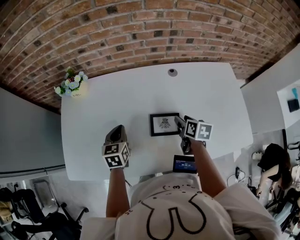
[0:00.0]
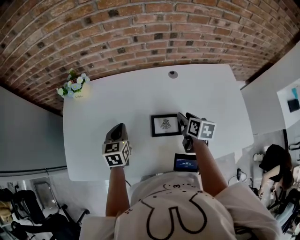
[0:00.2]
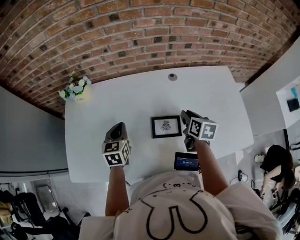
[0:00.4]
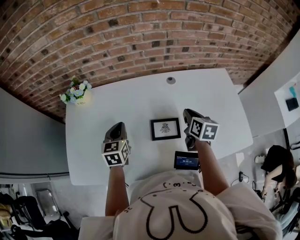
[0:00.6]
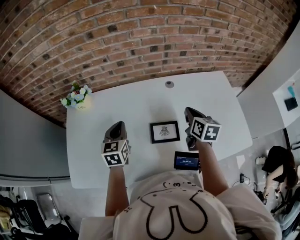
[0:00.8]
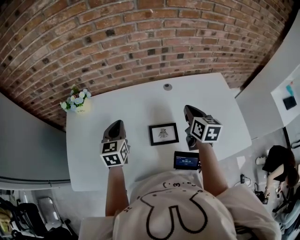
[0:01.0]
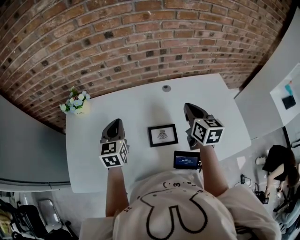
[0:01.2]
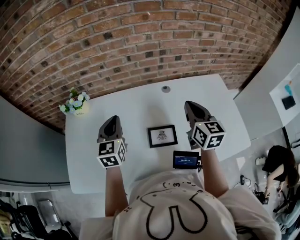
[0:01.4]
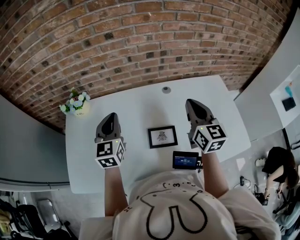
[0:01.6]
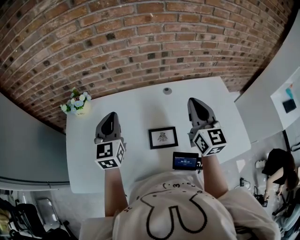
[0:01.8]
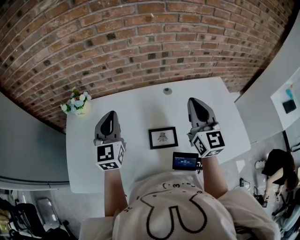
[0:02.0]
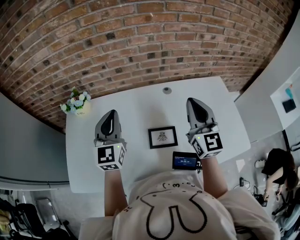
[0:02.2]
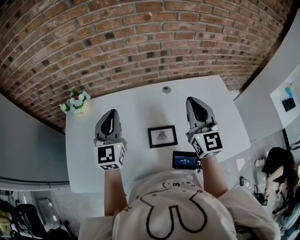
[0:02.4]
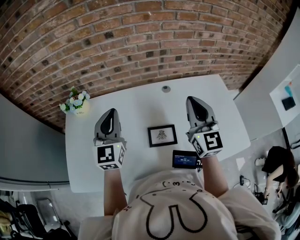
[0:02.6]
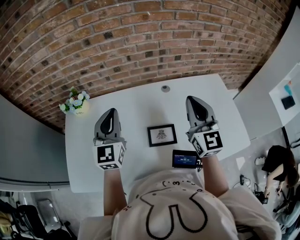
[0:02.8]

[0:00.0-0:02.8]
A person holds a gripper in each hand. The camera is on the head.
0:00.0 to 0:01.4: Both grippers travel together upward, about 20 cm. The left gripper rotates some 20 degrees, while the right gripper points its fingers approximately 30 degrees further upward, and closes its fingers.
0:01.4 to 0:02.8: Both grippers travel together upward, some 5 cm. The right gripper turns by some 30 degrees.

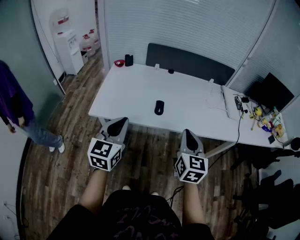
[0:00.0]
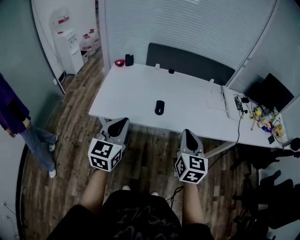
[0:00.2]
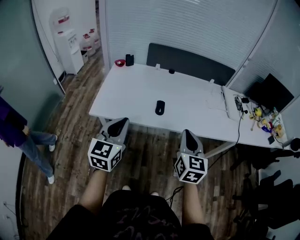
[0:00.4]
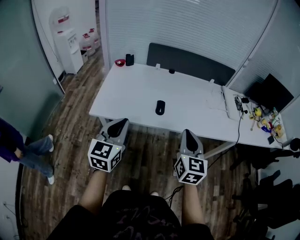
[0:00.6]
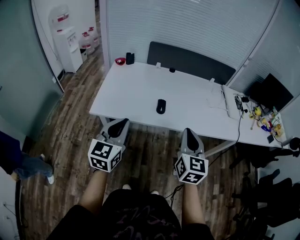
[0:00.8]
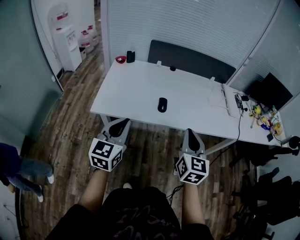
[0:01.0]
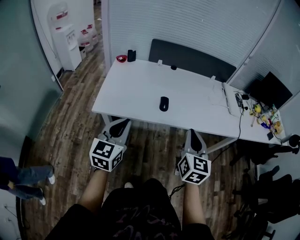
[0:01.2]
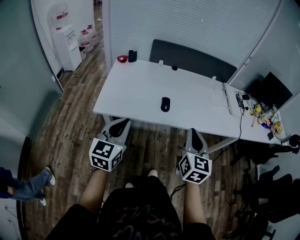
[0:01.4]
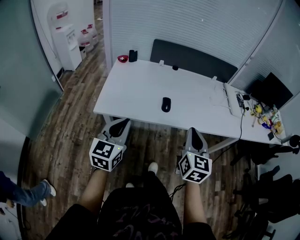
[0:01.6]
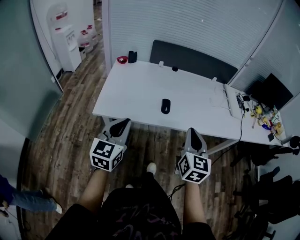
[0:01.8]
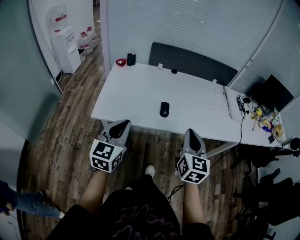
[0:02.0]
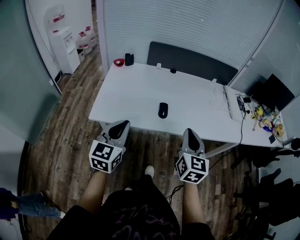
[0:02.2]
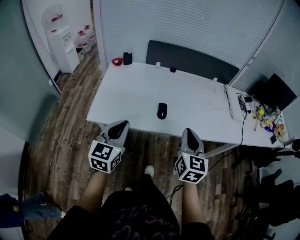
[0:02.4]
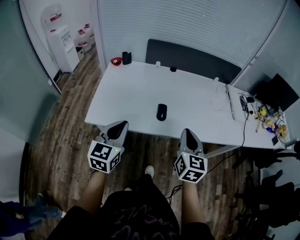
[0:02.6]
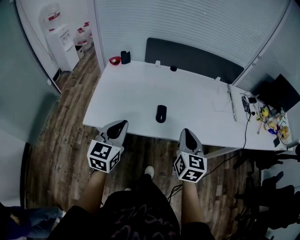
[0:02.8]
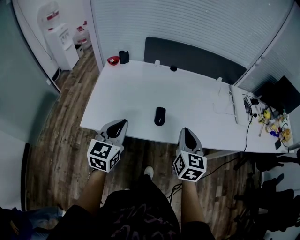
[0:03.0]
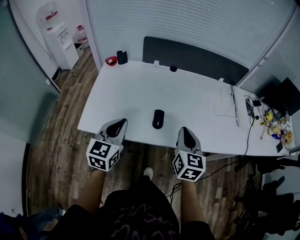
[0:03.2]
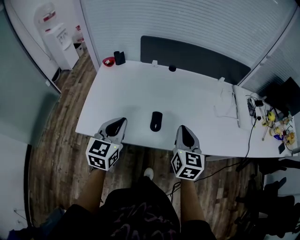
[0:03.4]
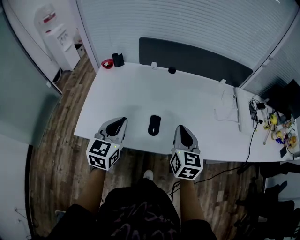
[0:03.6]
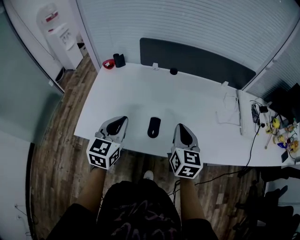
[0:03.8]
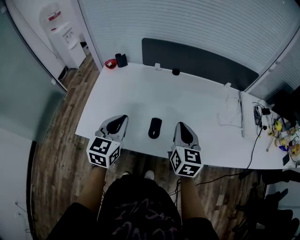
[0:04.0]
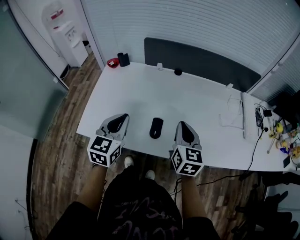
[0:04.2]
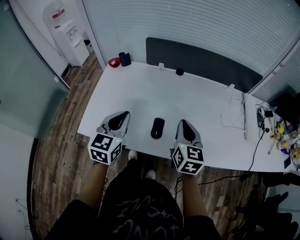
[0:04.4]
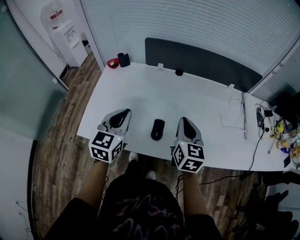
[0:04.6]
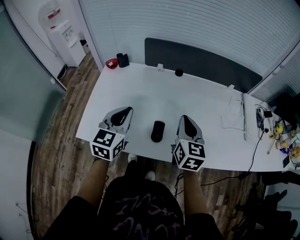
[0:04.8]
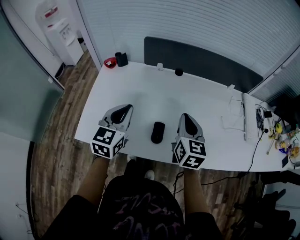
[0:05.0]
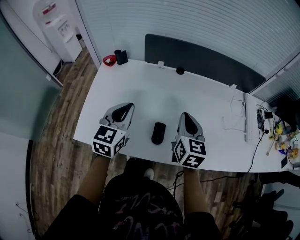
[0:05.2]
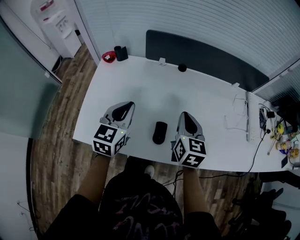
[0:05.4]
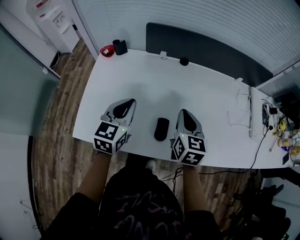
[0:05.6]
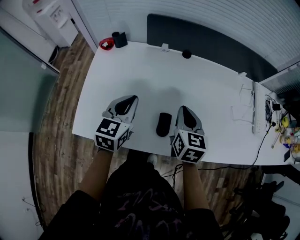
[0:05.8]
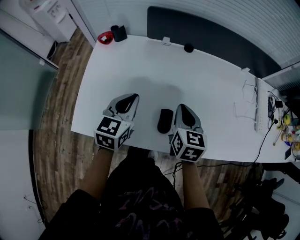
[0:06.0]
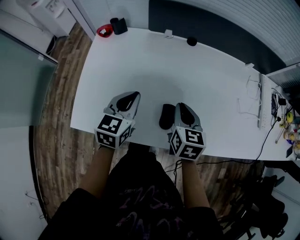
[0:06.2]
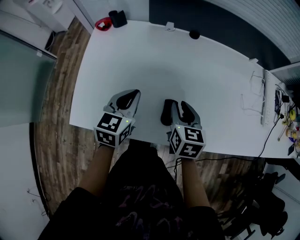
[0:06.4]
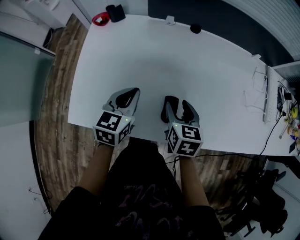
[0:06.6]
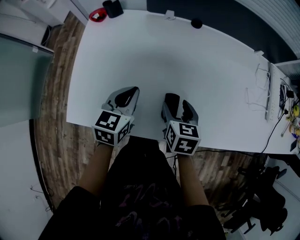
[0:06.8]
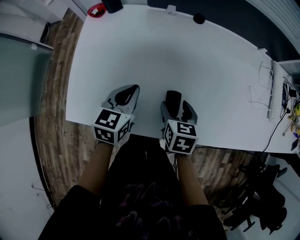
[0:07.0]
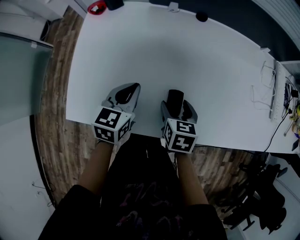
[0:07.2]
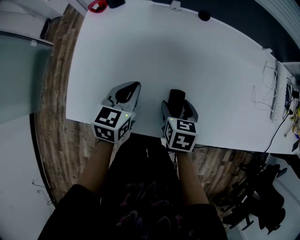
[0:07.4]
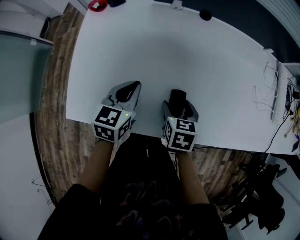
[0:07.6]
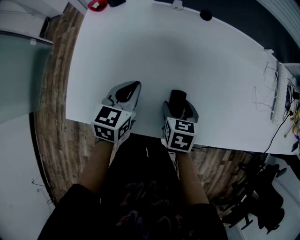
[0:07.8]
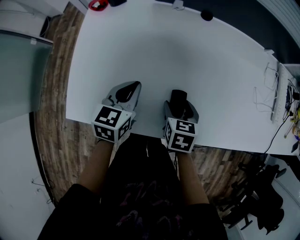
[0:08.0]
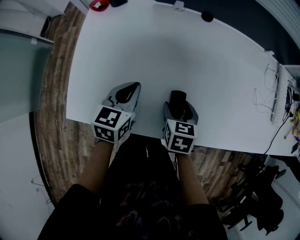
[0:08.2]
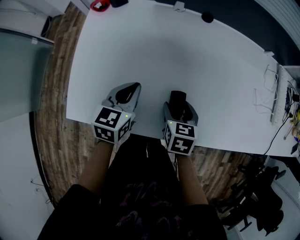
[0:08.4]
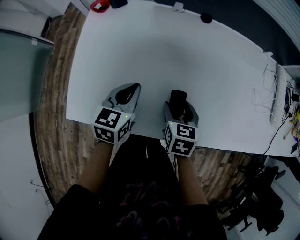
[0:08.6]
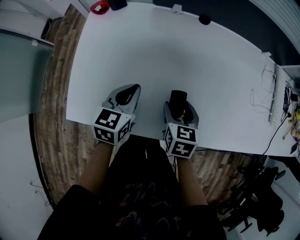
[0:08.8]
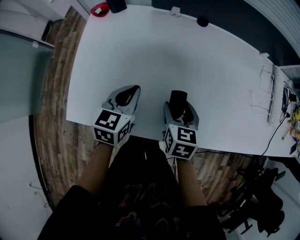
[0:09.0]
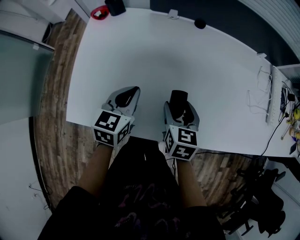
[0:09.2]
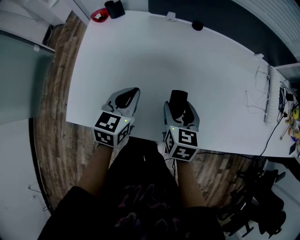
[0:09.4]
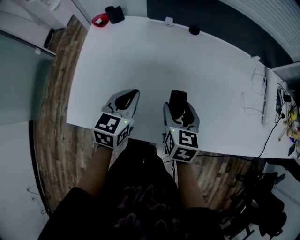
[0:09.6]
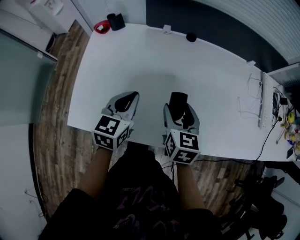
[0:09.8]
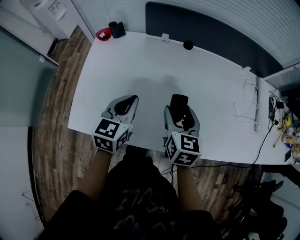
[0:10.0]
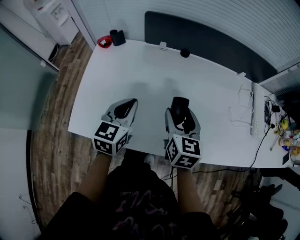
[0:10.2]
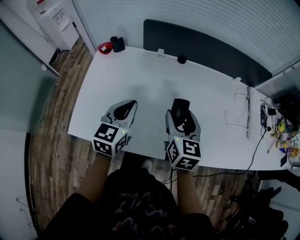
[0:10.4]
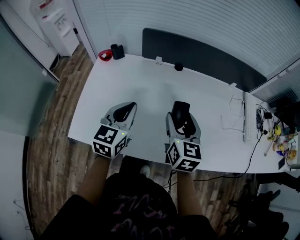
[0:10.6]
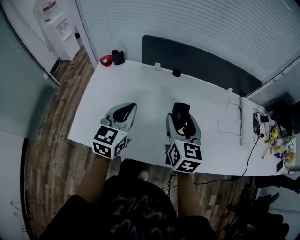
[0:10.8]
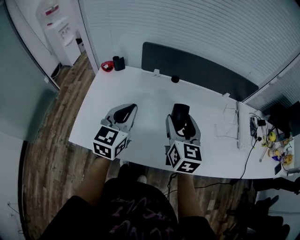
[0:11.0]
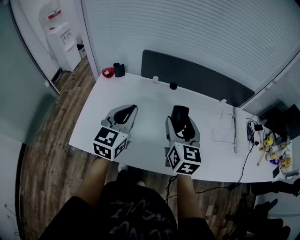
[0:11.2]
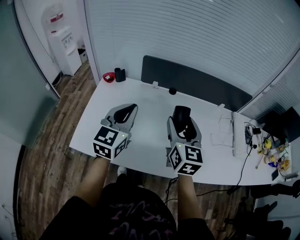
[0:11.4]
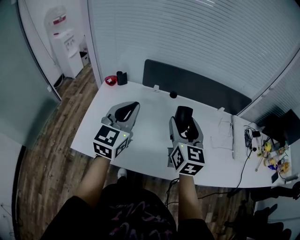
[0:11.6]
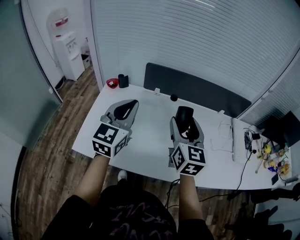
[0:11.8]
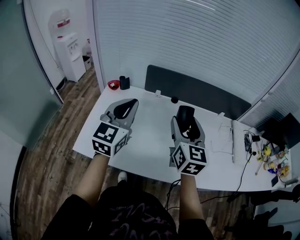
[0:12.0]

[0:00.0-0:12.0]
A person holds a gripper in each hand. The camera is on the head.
0:00.0 to 0:01.6: The left gripper changes place by roughly 5 cm.
0:01.6 to 0:03.0: Both grippers travel together forward, some 15 cm.
0:03.0 to 0:04.4: The two grippers go about 15 cm forward.
0:04.4 to 0:06.0: The right gripper travels downward, forward and to the left by roughly 10 cm. The left gripper heads forward and downward, covering about 10 cm.
0:06.0 to 0:07.6: The grippers both shift downward by roughly 10 cm. The right gripper swivels roughly 20 degrees, and opens its fingers.
0:07.6 to 0:09.0: The grippers make only small movements.
0:09.0 to 0:10.4: Both grippers move upward, about 15 cm. The right gripper swivels approximately 20 degrees.
0:10.4 to 0:12.0: Both grippers travel together upward, approximately 15 cm. The left gripper turns by some 20 degrees.

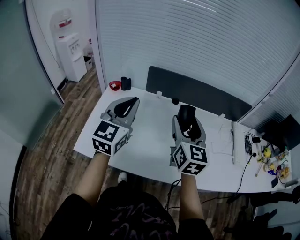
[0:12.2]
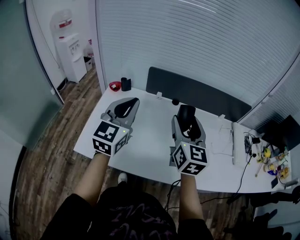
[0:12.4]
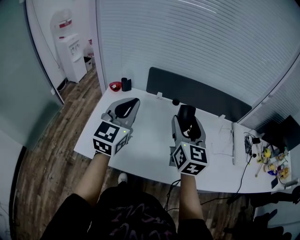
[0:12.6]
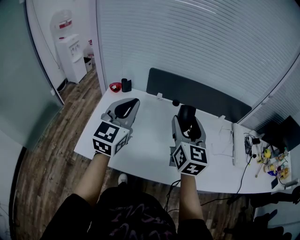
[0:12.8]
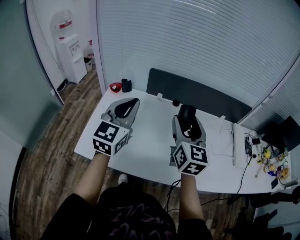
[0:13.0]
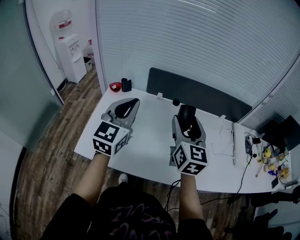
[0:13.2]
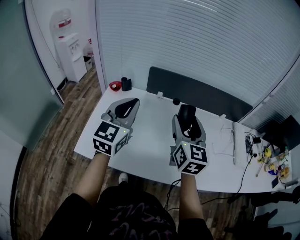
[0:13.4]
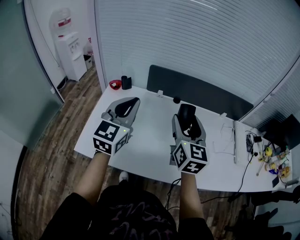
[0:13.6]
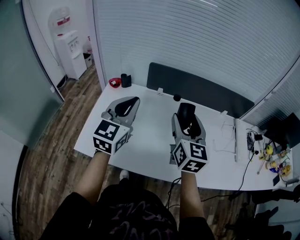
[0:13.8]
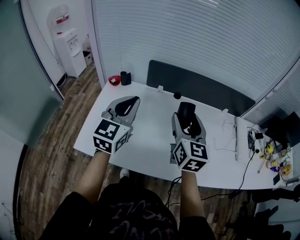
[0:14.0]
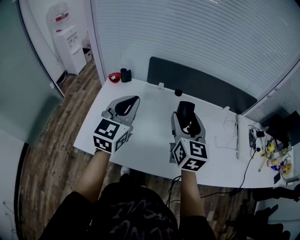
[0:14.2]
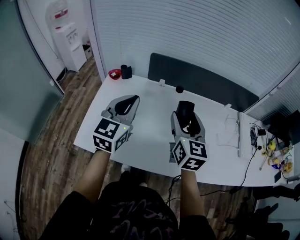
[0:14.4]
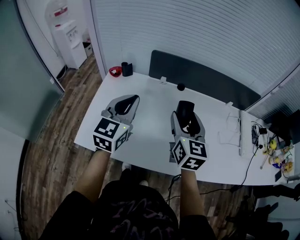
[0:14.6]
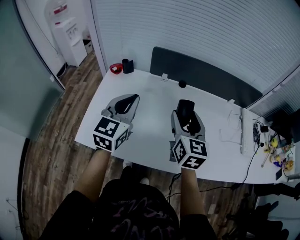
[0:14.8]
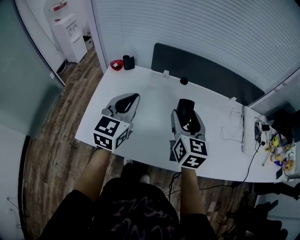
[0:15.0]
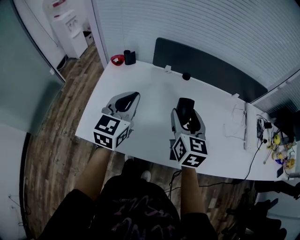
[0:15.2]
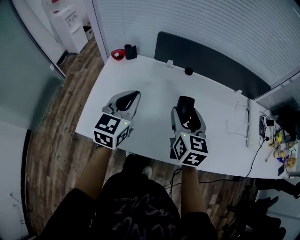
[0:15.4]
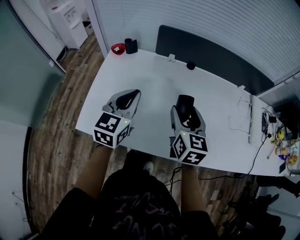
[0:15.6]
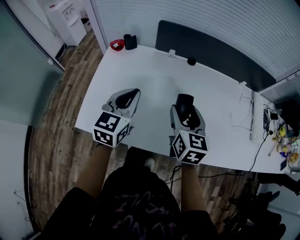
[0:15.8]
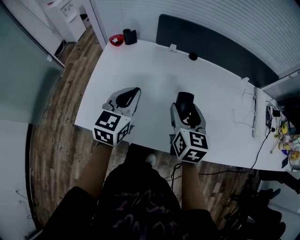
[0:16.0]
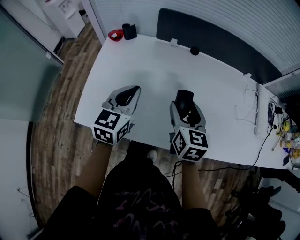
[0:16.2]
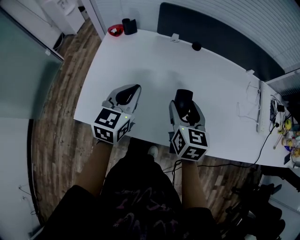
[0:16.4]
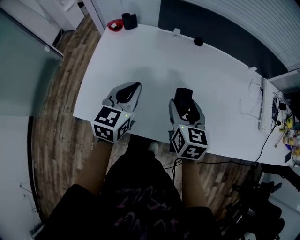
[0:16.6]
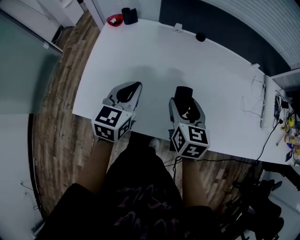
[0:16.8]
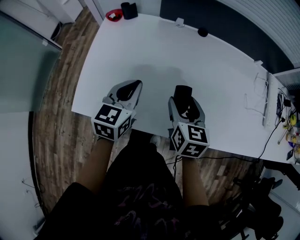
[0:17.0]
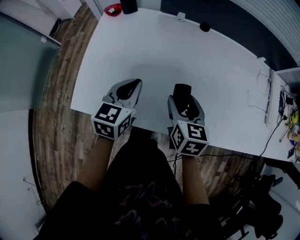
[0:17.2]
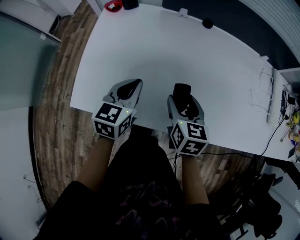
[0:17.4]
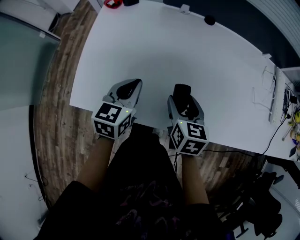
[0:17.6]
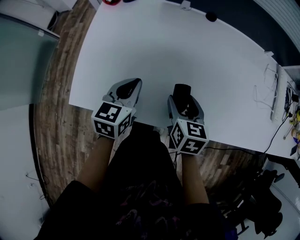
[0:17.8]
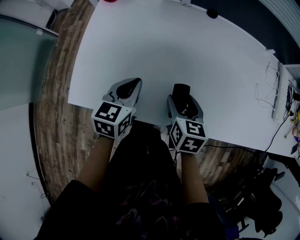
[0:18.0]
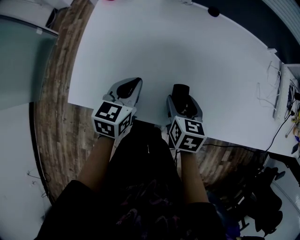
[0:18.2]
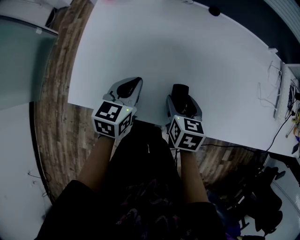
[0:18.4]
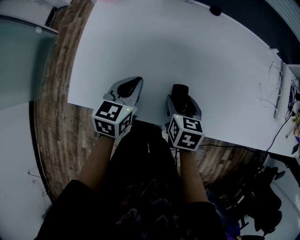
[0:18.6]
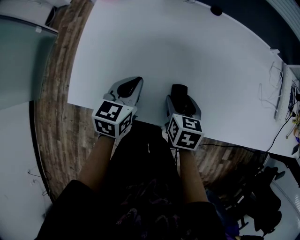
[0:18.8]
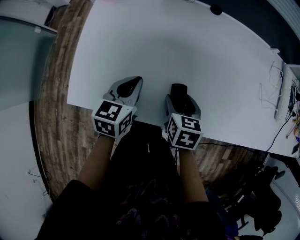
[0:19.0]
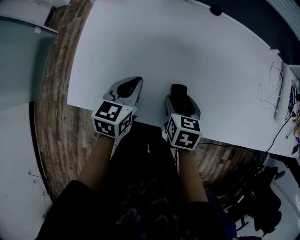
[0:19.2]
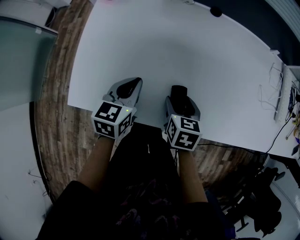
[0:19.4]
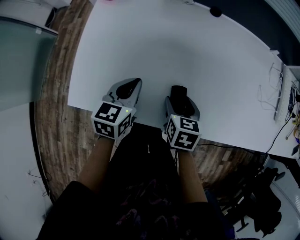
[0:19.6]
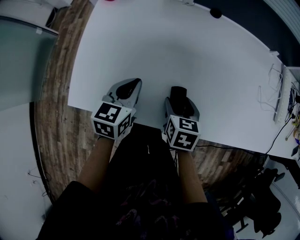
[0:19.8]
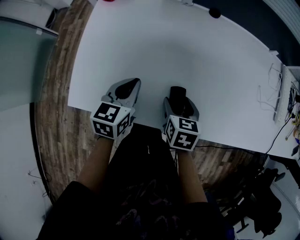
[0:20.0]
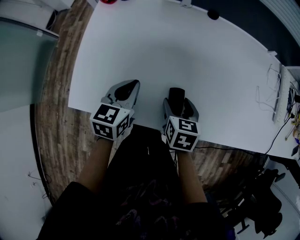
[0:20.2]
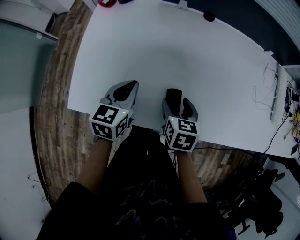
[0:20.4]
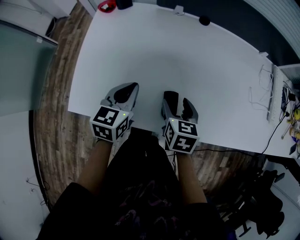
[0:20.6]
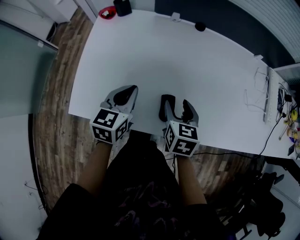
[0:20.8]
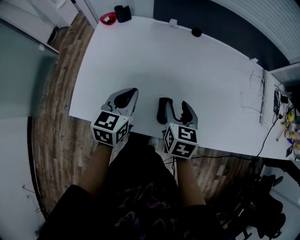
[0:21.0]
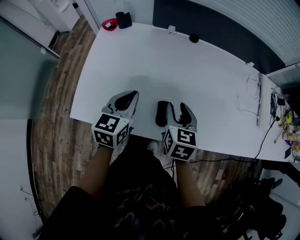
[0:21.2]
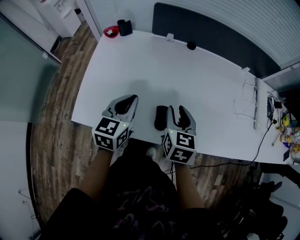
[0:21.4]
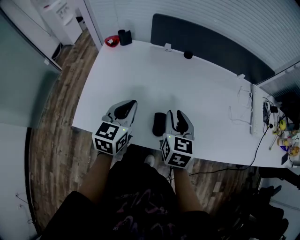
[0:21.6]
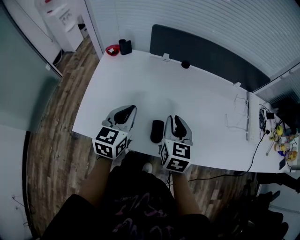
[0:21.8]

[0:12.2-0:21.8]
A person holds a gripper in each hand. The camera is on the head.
0:12.2 to 0:13.8: There are only small adjustments of the grippers.
0:13.8 to 0:15.4: The two grippers go approximately 10 cm downward.
0:15.4 to 0:17.0: Both grippers travel together downward, some 10 cm.
0:17.0 to 0:18.6: The two grippers go some 10 cm downward.
0:18.6 to 0:20.2: Both grippers stay put.
0:20.2 to 0:21.8: The grippers both shift upward by about 15 cm. The right gripper changes its angle by roughly 30 degrees, and closes.
